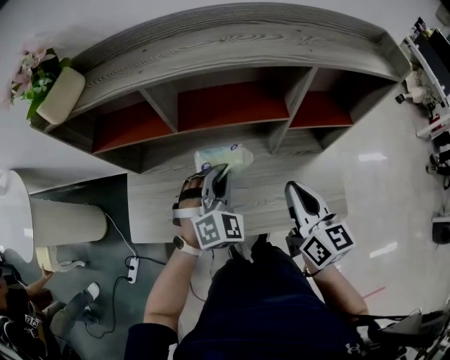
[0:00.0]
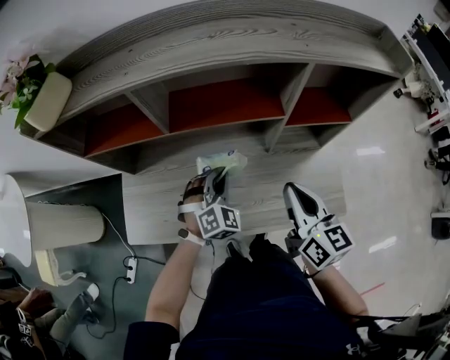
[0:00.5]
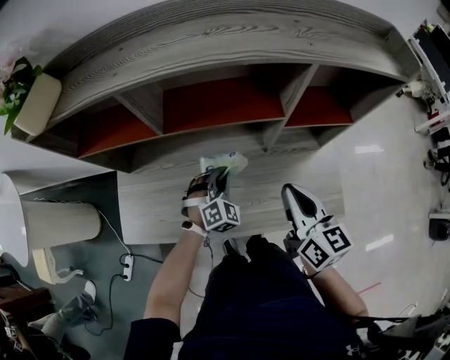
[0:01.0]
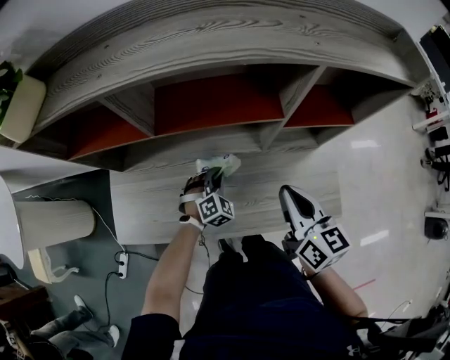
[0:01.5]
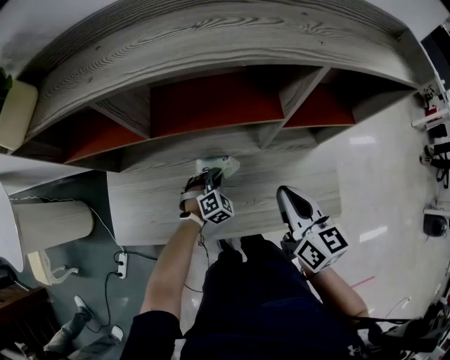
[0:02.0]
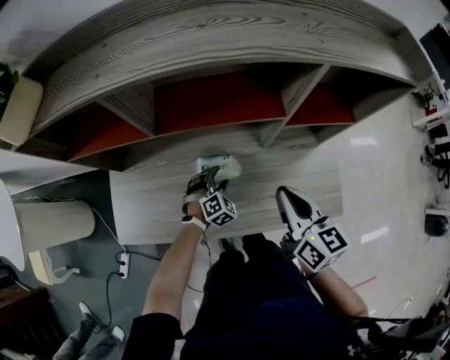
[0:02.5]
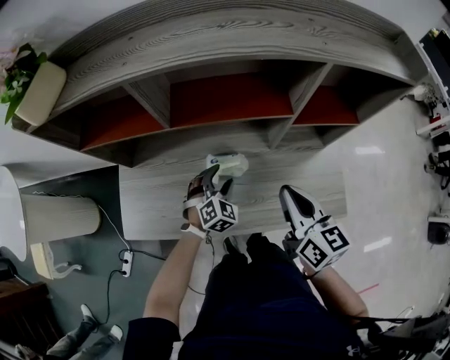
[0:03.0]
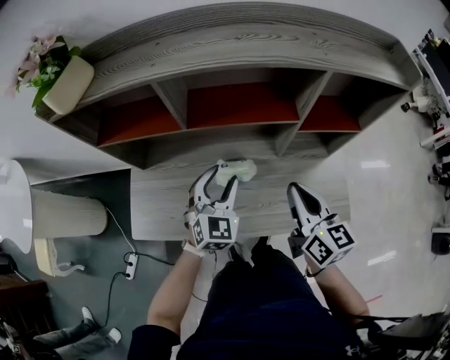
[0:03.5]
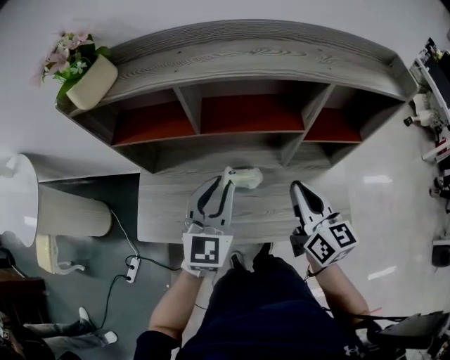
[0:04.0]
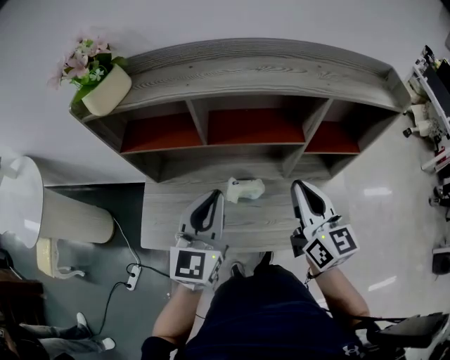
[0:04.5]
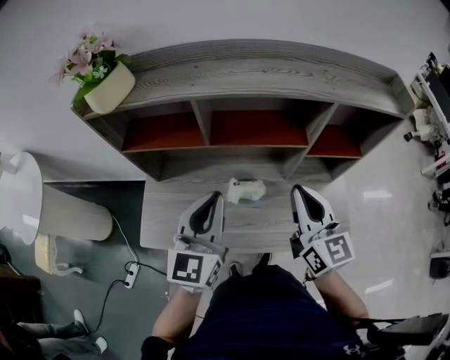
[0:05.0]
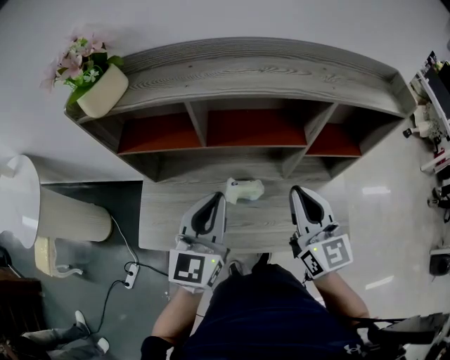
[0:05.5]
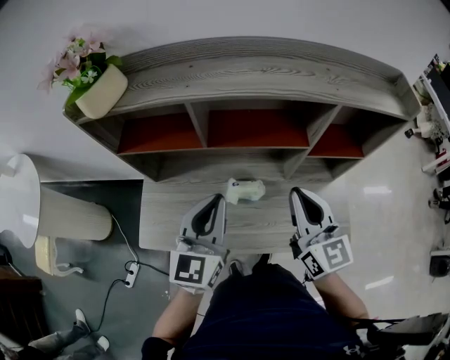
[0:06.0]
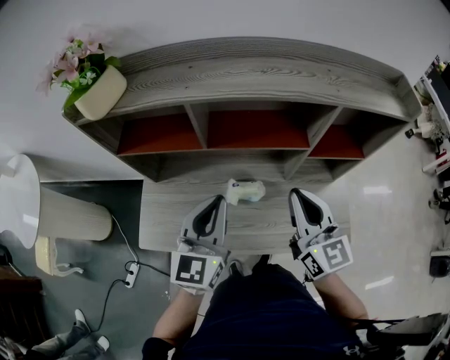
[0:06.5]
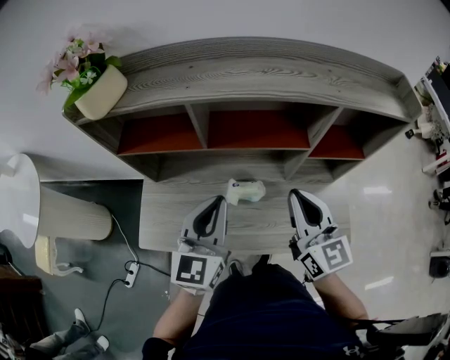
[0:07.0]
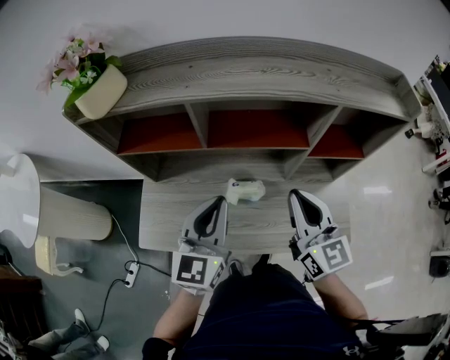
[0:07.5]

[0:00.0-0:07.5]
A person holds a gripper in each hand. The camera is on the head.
0:00.0 to 0:02.0: The right gripper shifts approximately 5 cm downward. Meanwhile the left gripper travels downward by some 25 cm, and rotates some 20 degrees.
0:02.0 to 0:04.0: The left gripper moves upward, some 35 cm, points its fingers some 50 degrees further upward, and opens and closes again. Meanwhile the right gripper is displaced upward by approximately 5 cm.
0:04.0 to 0:05.5: The right gripper moves upward, roughly 5 cm.
0:05.5 to 0:07.5: The grippers stay close to where they were, moving slightly.

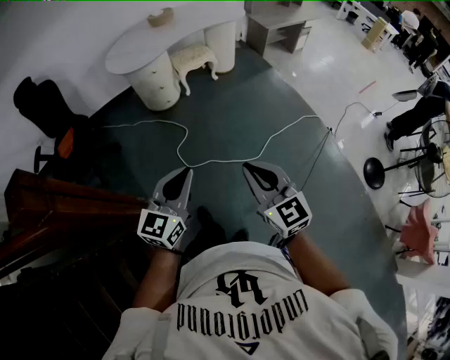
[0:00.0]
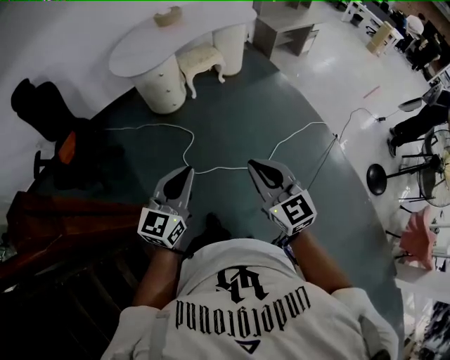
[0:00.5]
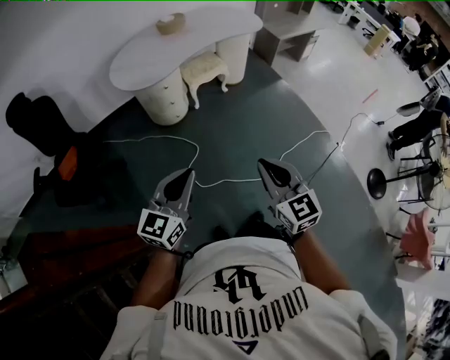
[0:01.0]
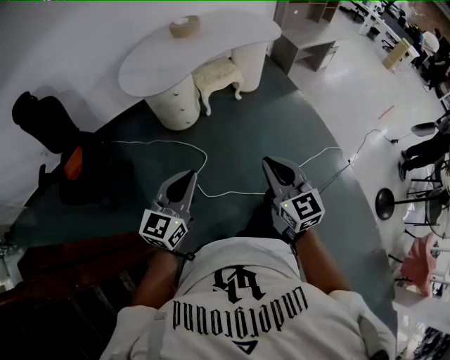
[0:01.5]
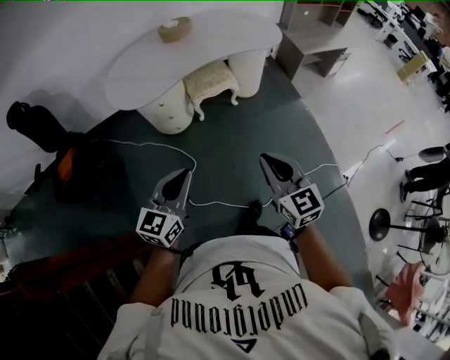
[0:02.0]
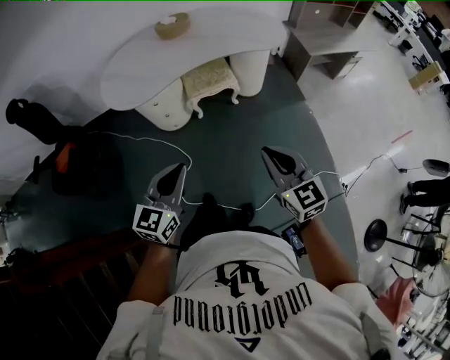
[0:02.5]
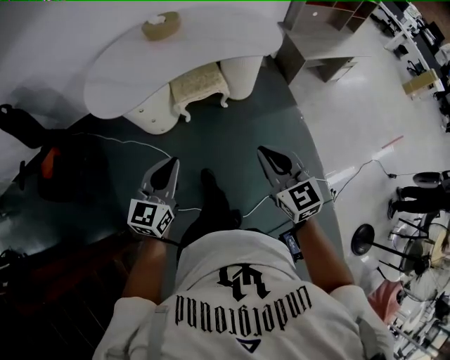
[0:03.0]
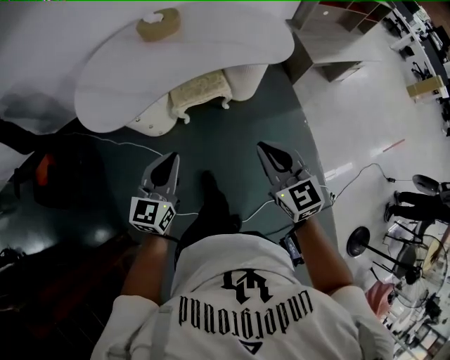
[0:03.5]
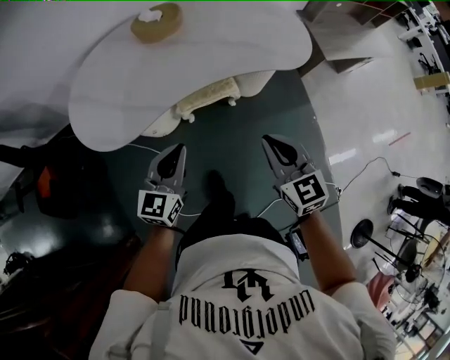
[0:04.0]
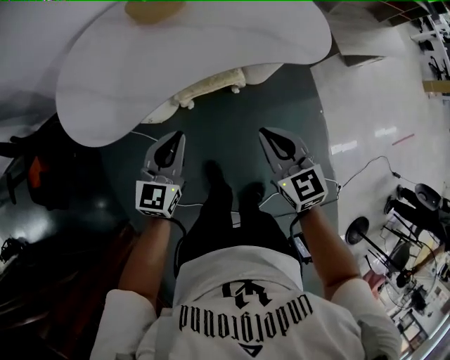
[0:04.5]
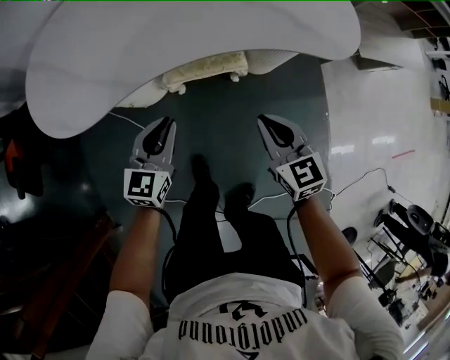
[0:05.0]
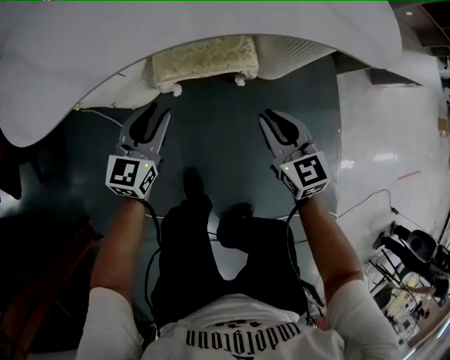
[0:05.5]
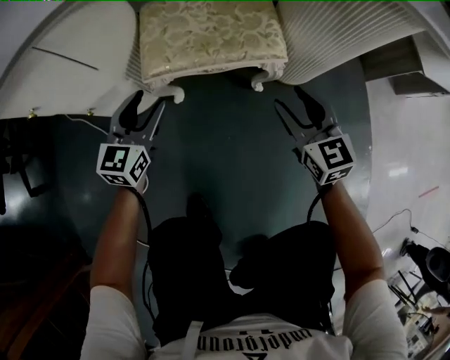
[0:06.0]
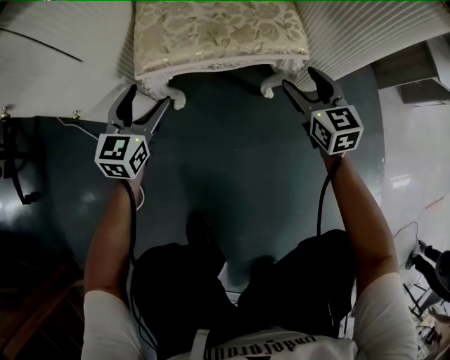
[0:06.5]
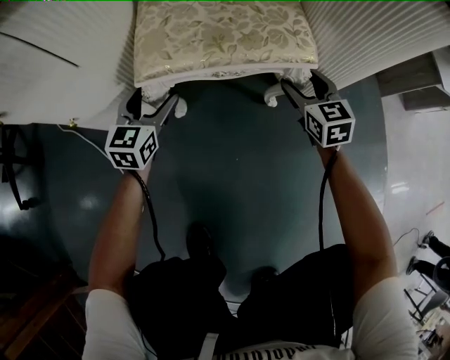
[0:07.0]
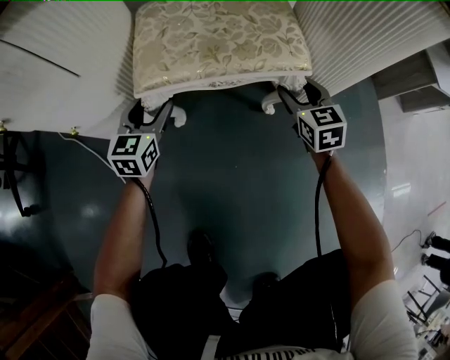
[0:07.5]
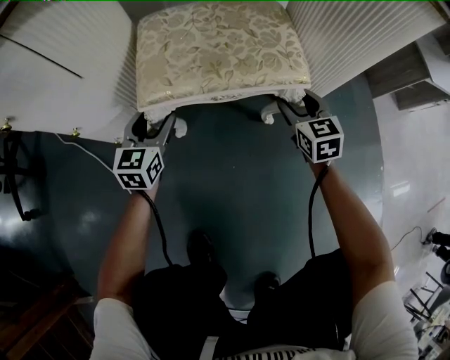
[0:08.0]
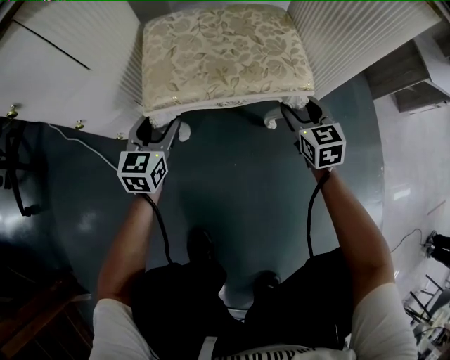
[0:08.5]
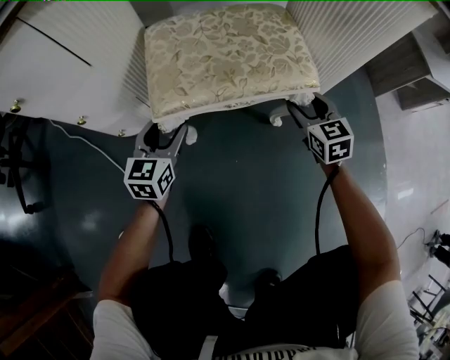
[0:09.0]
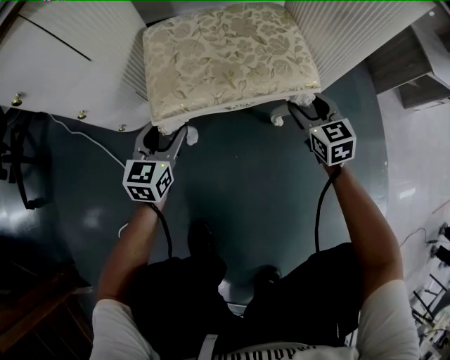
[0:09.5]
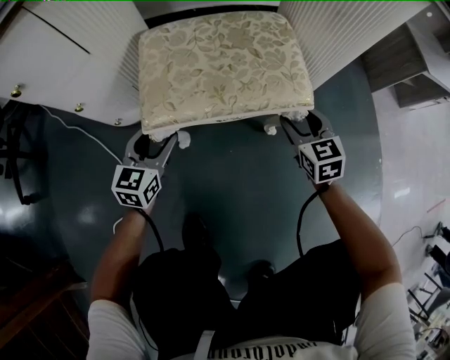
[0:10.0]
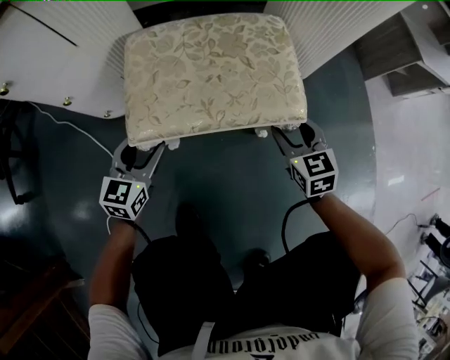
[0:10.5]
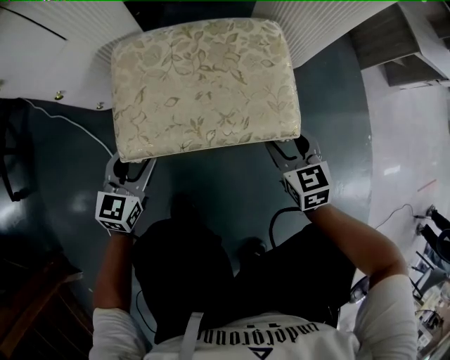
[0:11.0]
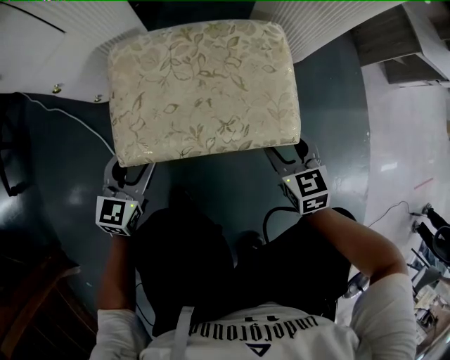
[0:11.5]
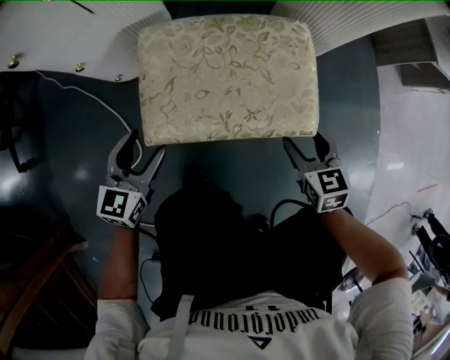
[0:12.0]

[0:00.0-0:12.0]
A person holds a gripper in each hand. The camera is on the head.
0:00.0 to 0:02.0: The pair of grippers is taken forward, about 50 cm.
0:02.0 to 0:04.0: The two grippers travel together, forward, some 40 cm.
0:04.0 to 0:06.0: Both grippers travel together downward, roughly 60 cm. The right gripper opens up; the left gripper opens.
0:06.0 to 0:08.0: The grippers both shift downward and forward by approximately 15 cm.
0:08.0 to 0:10.0: There are only small adjustments of the grippers.
0:10.0 to 0:12.0: The left gripper shifts roughly 5 cm upward.

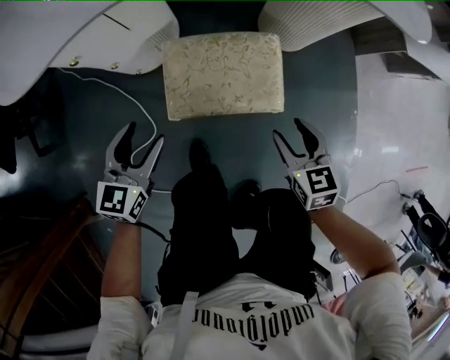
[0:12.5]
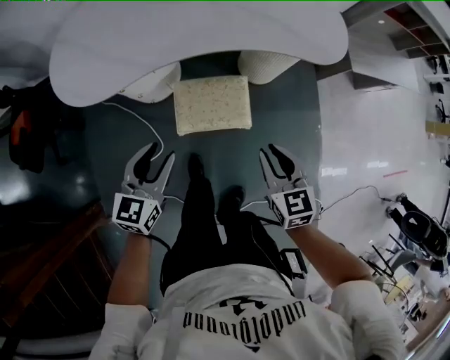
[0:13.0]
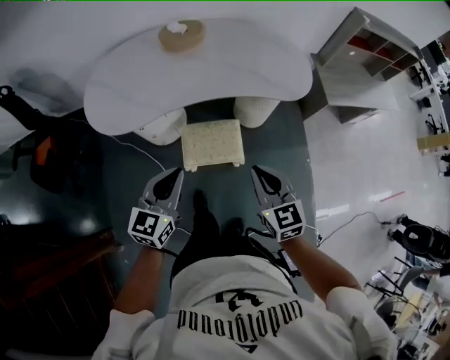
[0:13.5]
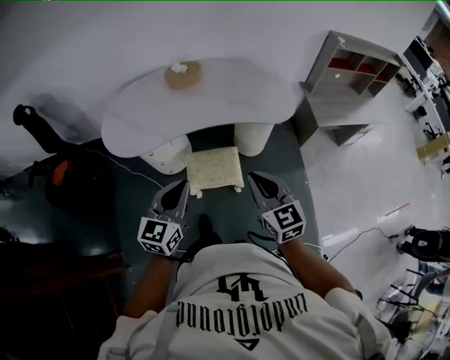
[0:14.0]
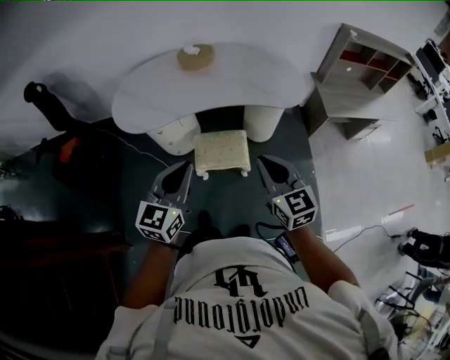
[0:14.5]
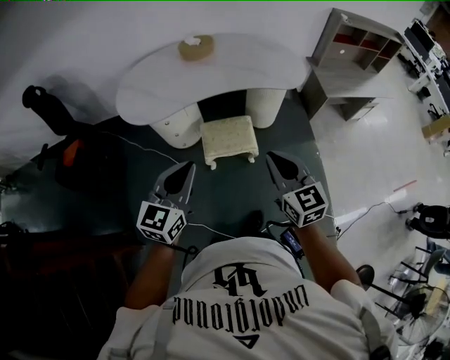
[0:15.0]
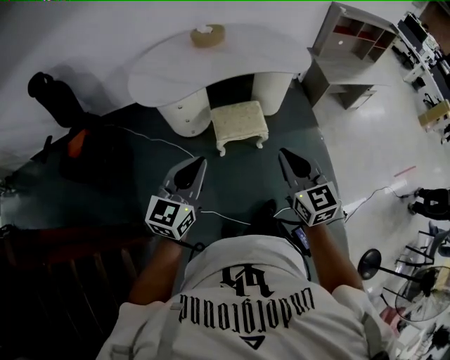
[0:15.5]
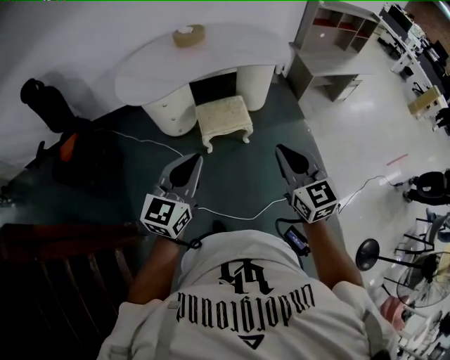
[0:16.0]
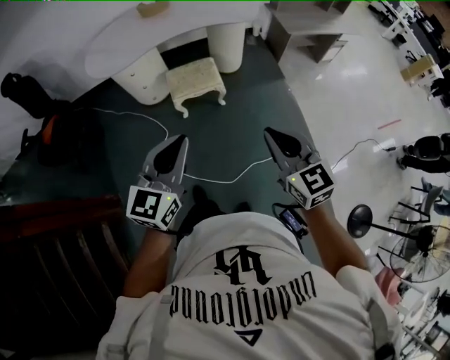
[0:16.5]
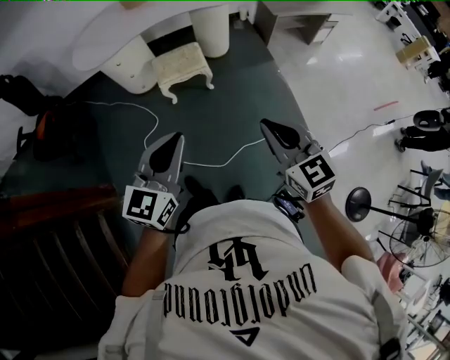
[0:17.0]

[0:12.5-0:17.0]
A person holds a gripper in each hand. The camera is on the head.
0:12.5 to 0:14.5: The grippers both shift upward by approximately 60 cm. The left gripper closes. Meanwhile the right gripper turns by about 30 degrees, and closes.
0:14.5 to 0:17.0: The pair of grippers is taken backward, approximately 40 cm.

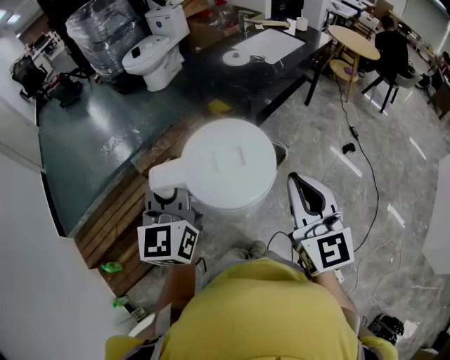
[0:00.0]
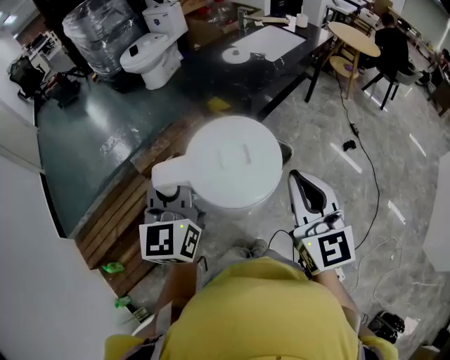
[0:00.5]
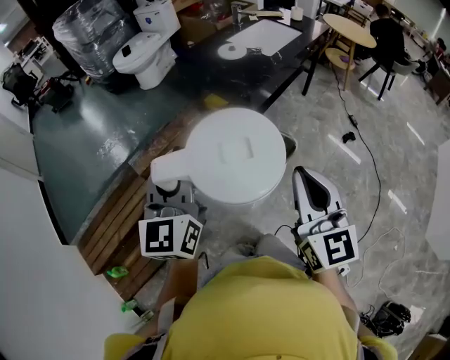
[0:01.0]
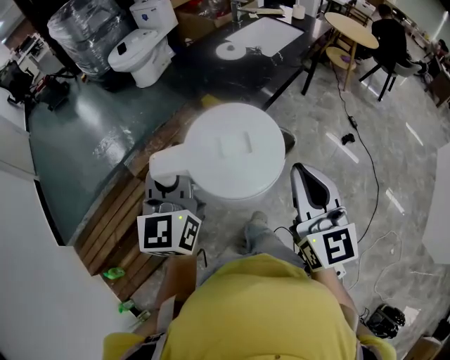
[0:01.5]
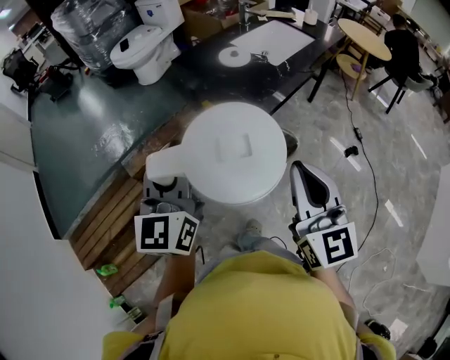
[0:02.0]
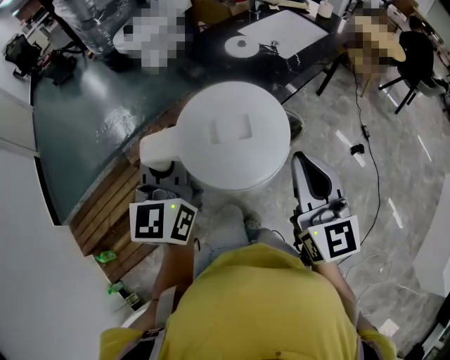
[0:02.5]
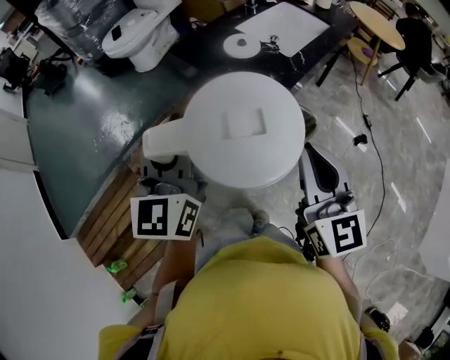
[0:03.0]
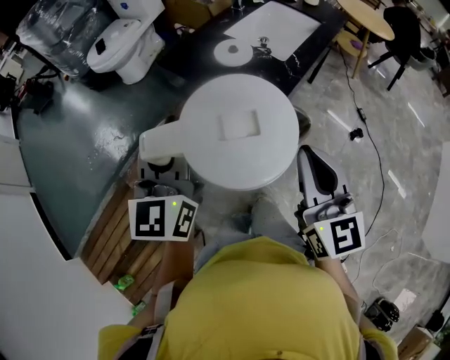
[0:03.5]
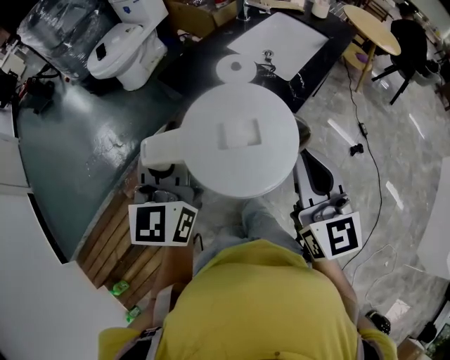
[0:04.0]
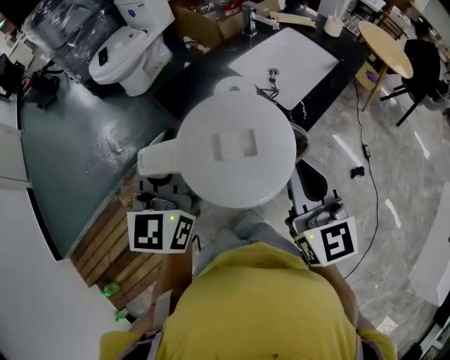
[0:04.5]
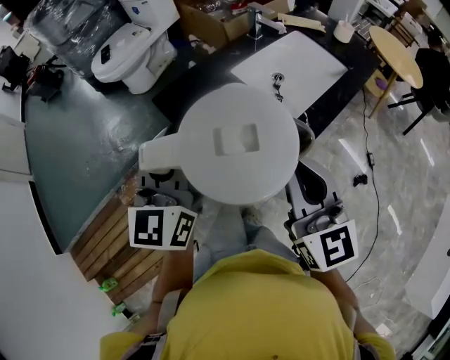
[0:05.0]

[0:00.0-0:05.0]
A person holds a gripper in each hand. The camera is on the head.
0:00.0 to 0:02.5: Both grippers move forward, roughly 20 cm.
0:02.5 to 0:05.0: The grippers both shift forward by approximately 35 cm.
